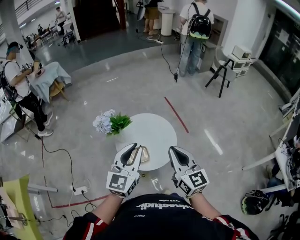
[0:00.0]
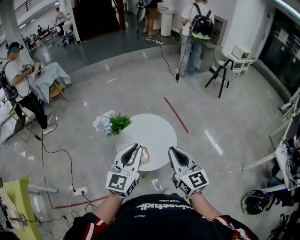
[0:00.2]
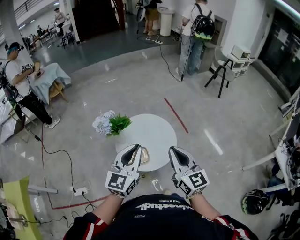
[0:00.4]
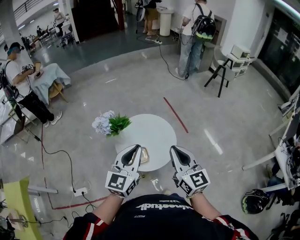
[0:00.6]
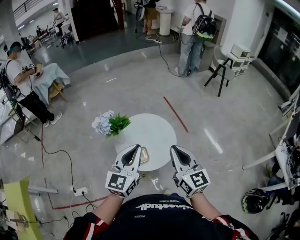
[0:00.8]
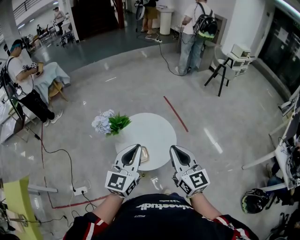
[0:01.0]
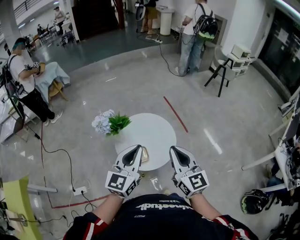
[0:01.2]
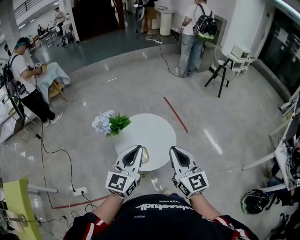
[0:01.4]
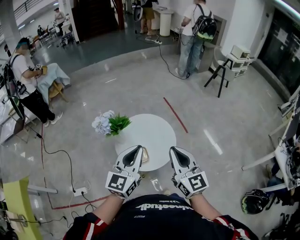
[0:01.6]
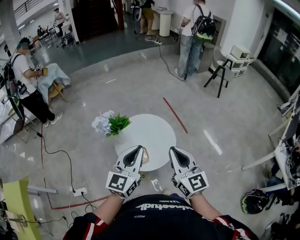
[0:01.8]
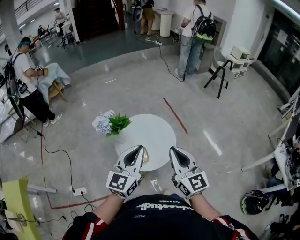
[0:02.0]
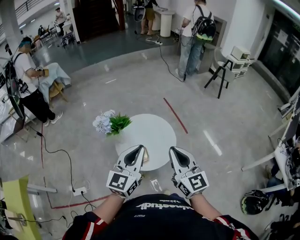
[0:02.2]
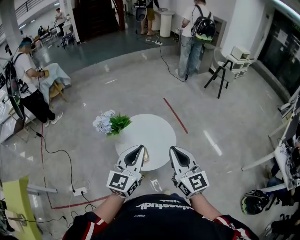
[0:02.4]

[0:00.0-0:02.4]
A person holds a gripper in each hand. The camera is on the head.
0:00.0 to 0:02.4: There are only small adjustments of the grippers.

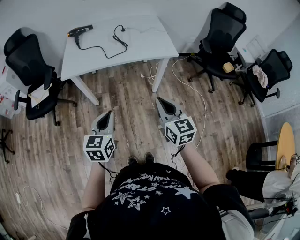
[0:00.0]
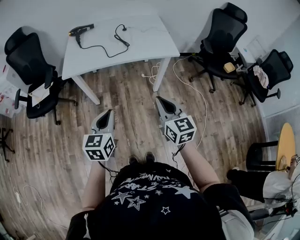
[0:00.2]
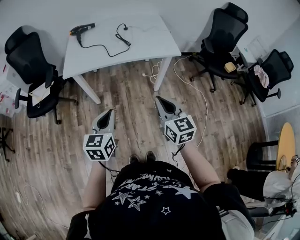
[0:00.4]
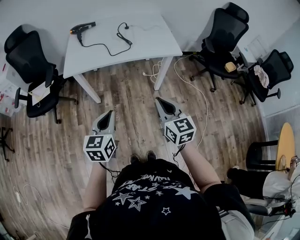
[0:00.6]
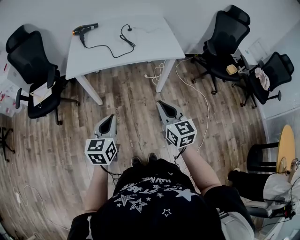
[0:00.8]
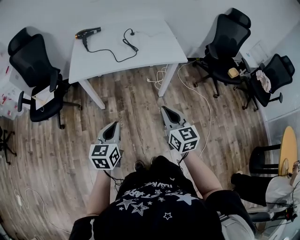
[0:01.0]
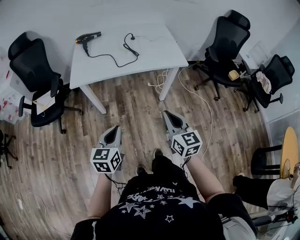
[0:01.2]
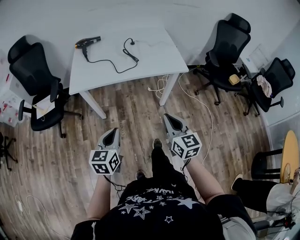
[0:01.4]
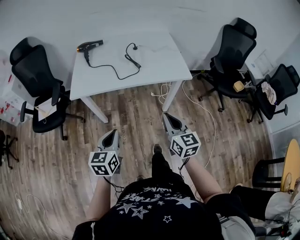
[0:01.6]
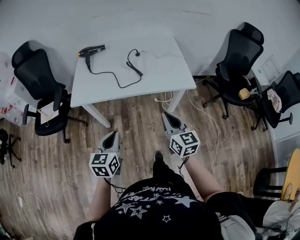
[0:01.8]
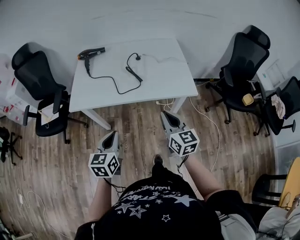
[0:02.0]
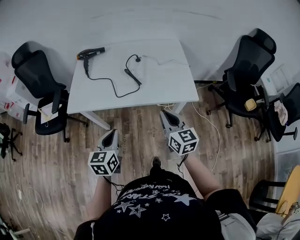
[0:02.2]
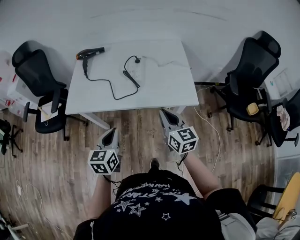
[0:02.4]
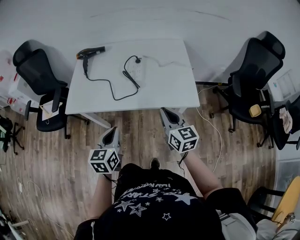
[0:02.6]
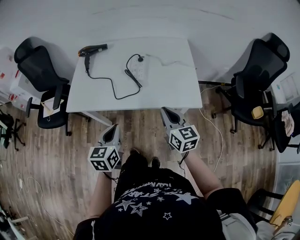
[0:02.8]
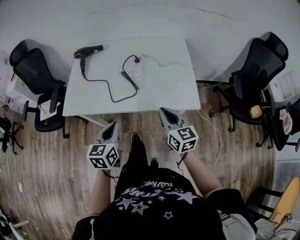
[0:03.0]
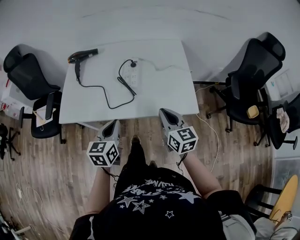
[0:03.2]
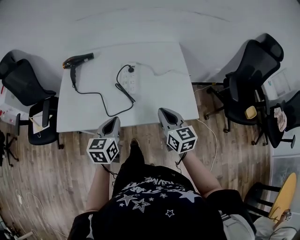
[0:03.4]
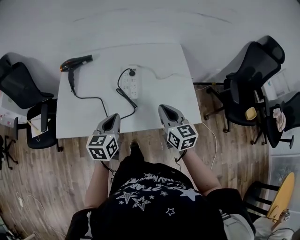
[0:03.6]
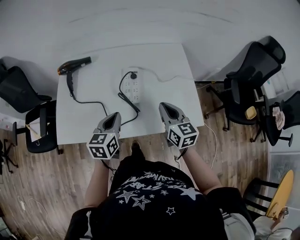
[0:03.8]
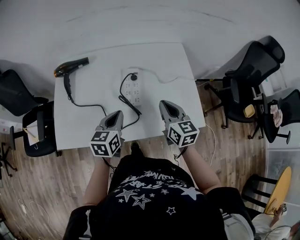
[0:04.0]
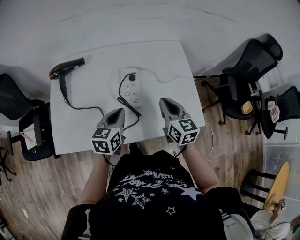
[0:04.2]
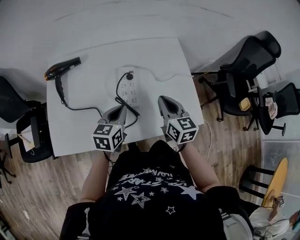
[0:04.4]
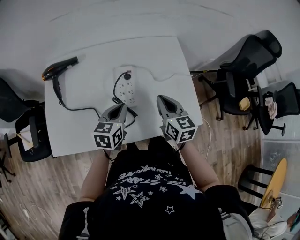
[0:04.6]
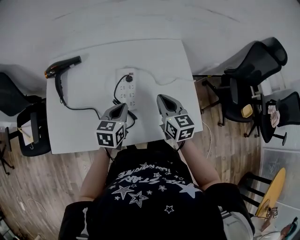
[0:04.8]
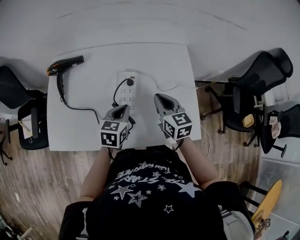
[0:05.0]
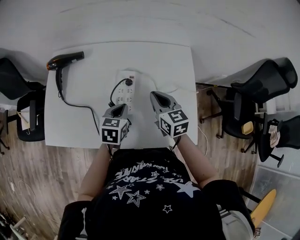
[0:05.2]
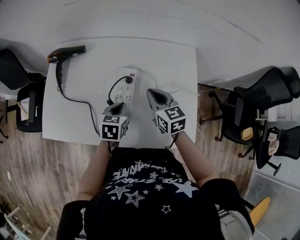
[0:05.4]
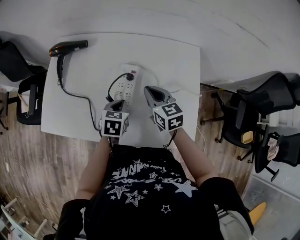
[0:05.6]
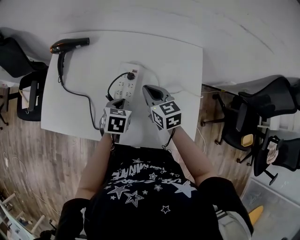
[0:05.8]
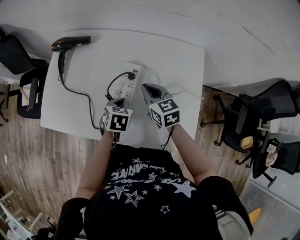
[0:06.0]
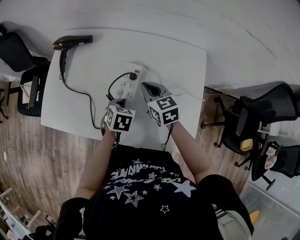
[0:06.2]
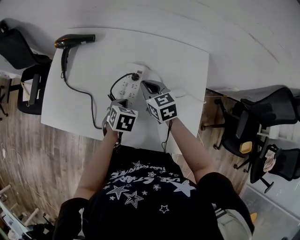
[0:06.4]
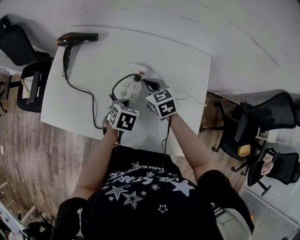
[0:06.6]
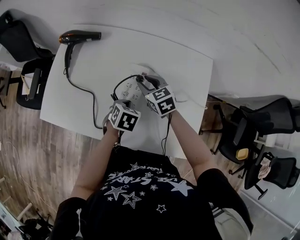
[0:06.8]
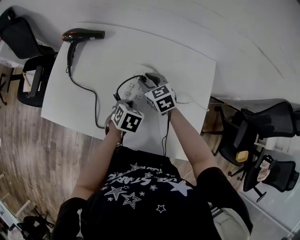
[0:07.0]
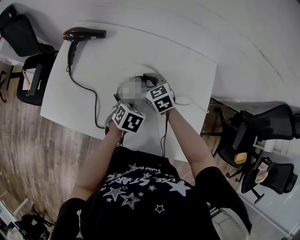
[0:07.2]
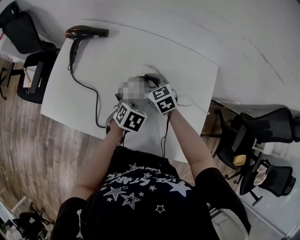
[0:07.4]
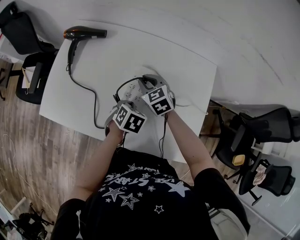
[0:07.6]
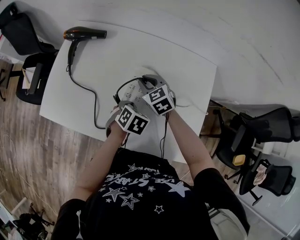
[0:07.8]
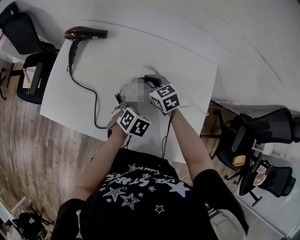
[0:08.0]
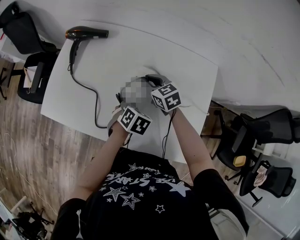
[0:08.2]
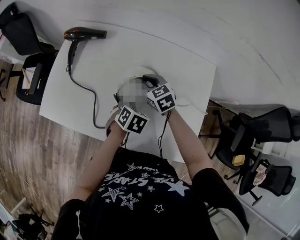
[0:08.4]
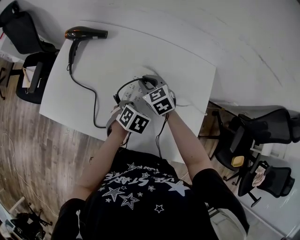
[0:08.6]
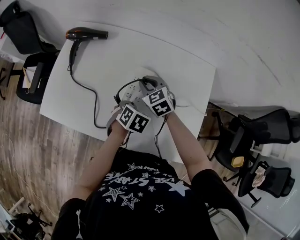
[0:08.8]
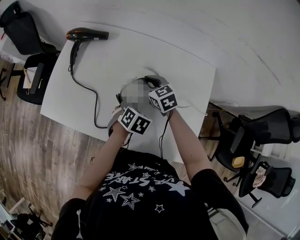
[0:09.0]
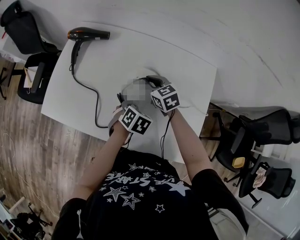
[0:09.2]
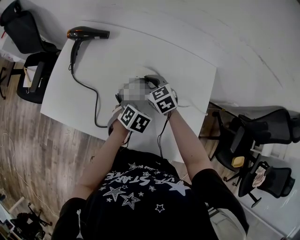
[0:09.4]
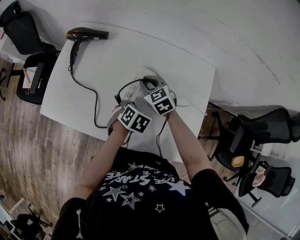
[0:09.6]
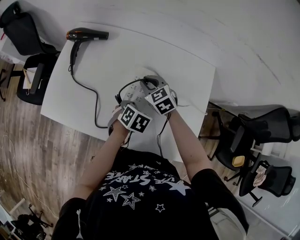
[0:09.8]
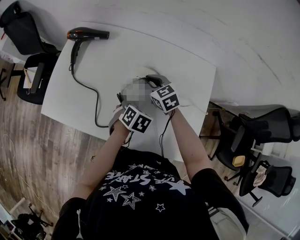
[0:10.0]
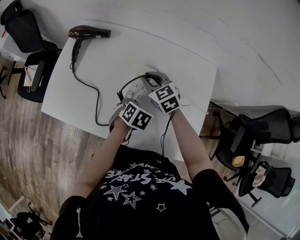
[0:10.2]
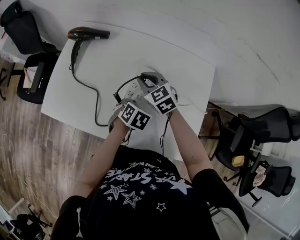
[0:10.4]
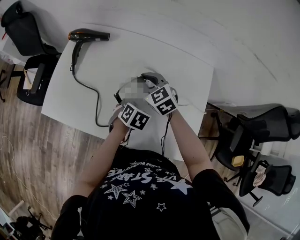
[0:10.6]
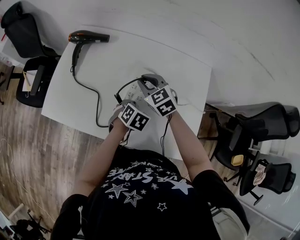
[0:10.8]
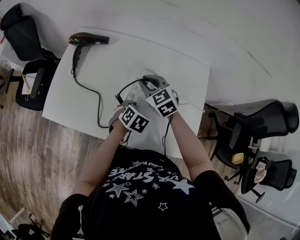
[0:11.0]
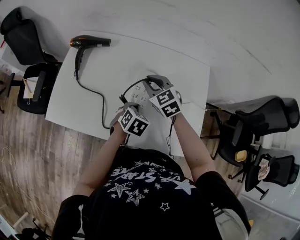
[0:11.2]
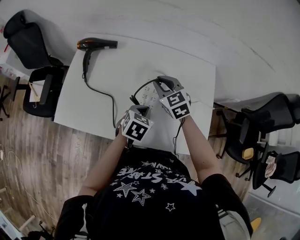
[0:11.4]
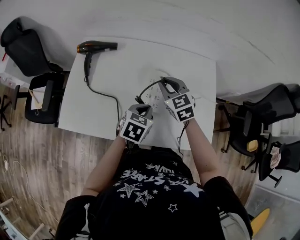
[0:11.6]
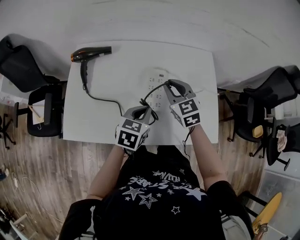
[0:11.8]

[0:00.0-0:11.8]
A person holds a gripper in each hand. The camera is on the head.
0:00.0 to 0:01.4: The right gripper ends up some 5 cm from where it was. Meanwhile the left gripper changes place by about 5 cm.
0:01.4 to 0:03.0: The left gripper heads forward and to the right, covering about 30 cm; the right gripper is displaced forward by about 30 cm.
0:03.0 to 0:04.4: The grippers both shift forward by approximately 25 cm. The left gripper turns by roughly 20 degrees.
0:04.4 to 0:06.0: The right gripper changes place by some 15 cm, and rotates roughly 30 degrees, while the left gripper moves downward, roughly 10 cm, and angles its fingers downward, by some 30 degrees.
0:06.0 to 0:07.4: The right gripper shifts some 10 cm forward and to the left, and swivels about 20 degrees.
0:07.4 to 0:10.4: There are only small adjustments of the grippers.
0:10.4 to 0:11.8: The left gripper heads upward, covering approximately 10 cm, and swivels approximately 40 degrees; the right gripper heads upward, covering about 5 cm, and rotates roughly 30 degrees.

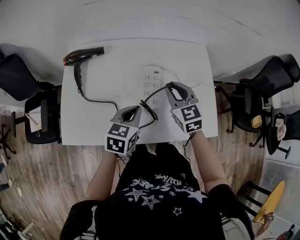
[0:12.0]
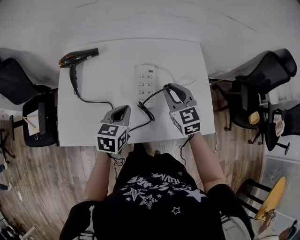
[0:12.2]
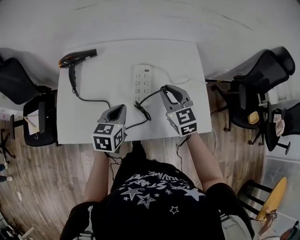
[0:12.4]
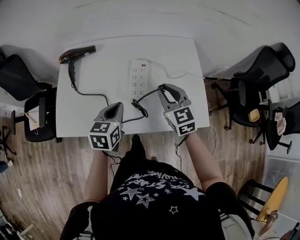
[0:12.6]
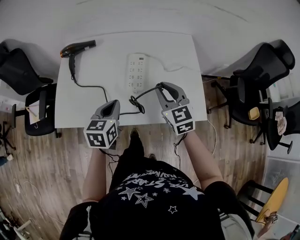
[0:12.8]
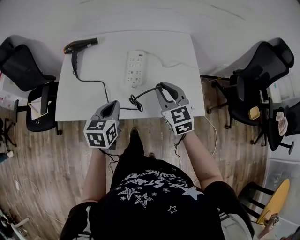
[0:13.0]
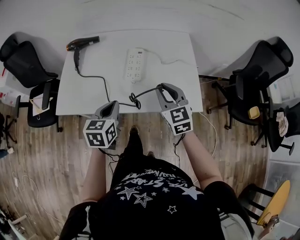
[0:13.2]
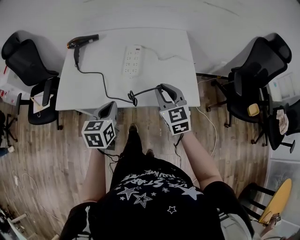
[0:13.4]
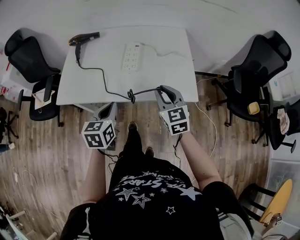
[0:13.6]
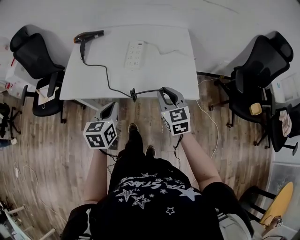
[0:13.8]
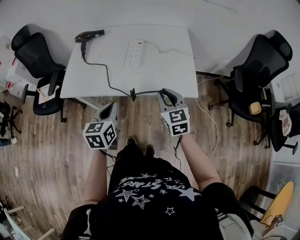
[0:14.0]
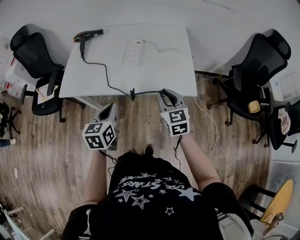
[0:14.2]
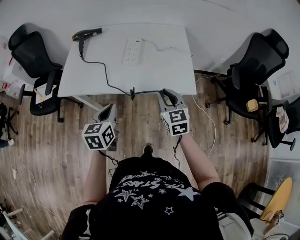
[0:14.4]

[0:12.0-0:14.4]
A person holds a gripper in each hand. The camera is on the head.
0:12.0 to 0:13.2: The grippers both shift backward by roughly 15 cm.
0:13.2 to 0:14.4: The two grippers go approximately 15 cm backward.

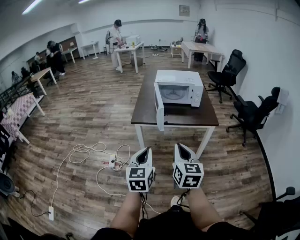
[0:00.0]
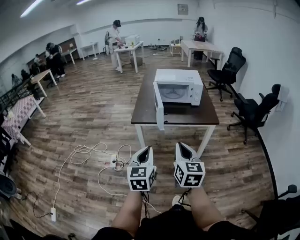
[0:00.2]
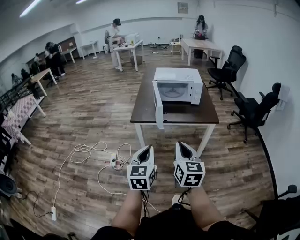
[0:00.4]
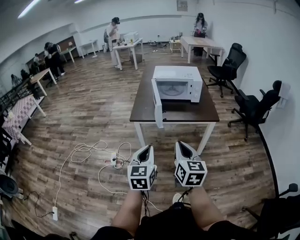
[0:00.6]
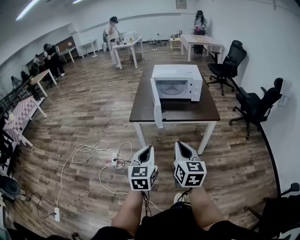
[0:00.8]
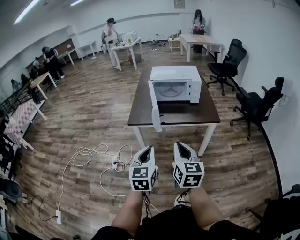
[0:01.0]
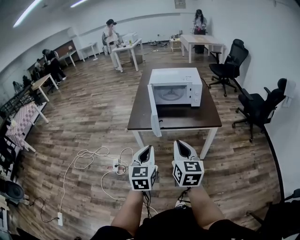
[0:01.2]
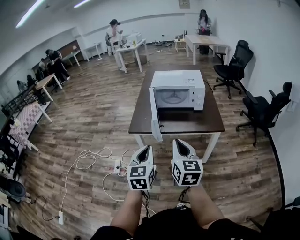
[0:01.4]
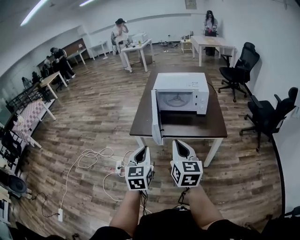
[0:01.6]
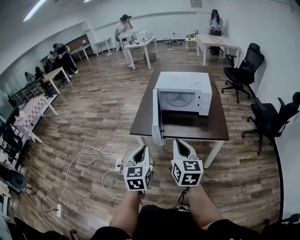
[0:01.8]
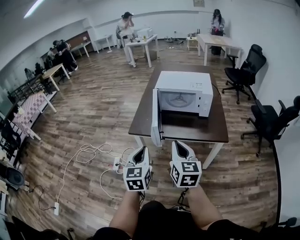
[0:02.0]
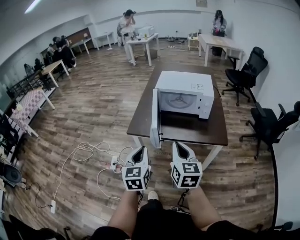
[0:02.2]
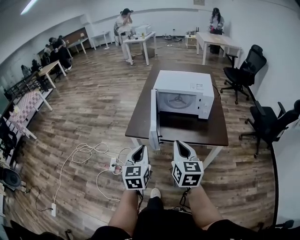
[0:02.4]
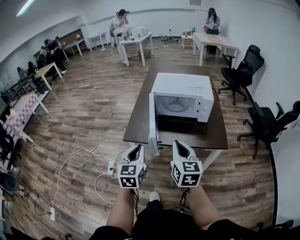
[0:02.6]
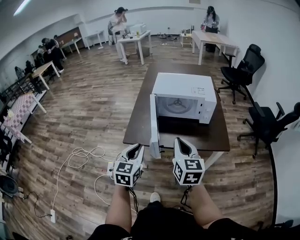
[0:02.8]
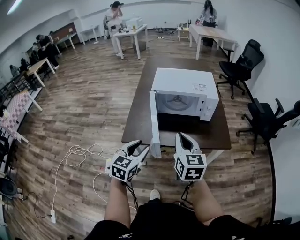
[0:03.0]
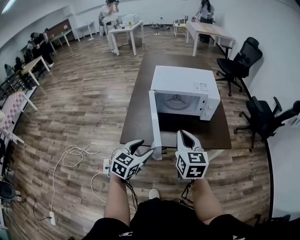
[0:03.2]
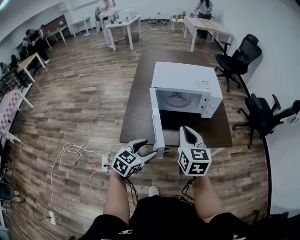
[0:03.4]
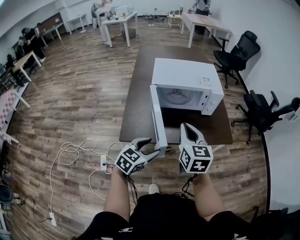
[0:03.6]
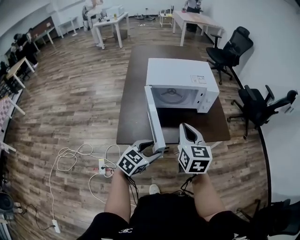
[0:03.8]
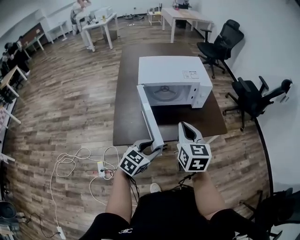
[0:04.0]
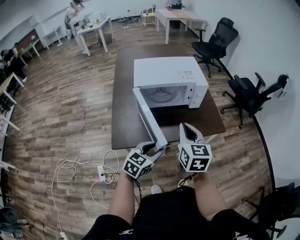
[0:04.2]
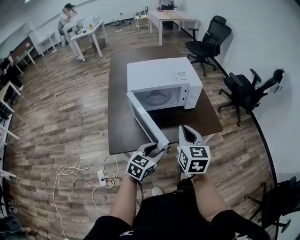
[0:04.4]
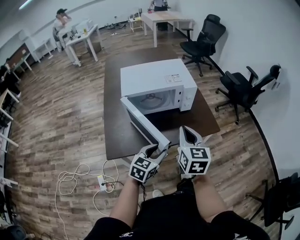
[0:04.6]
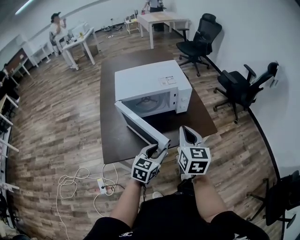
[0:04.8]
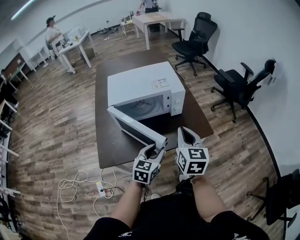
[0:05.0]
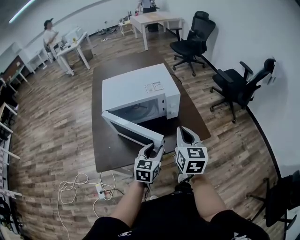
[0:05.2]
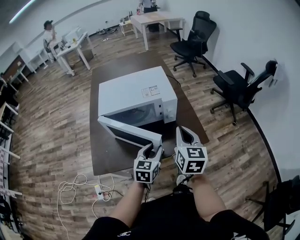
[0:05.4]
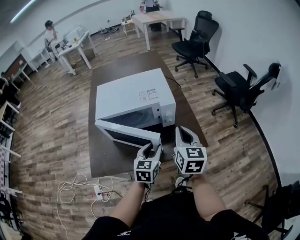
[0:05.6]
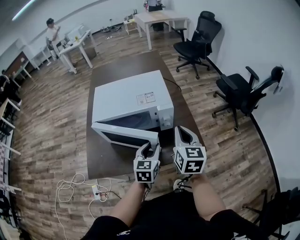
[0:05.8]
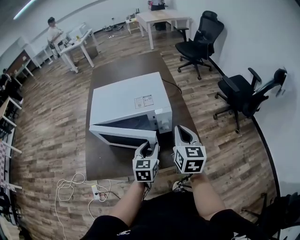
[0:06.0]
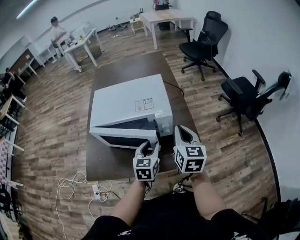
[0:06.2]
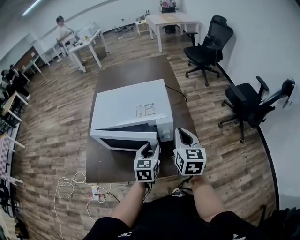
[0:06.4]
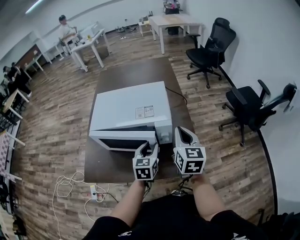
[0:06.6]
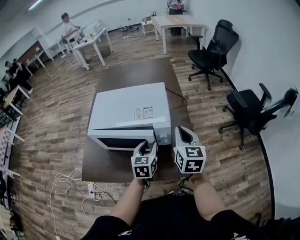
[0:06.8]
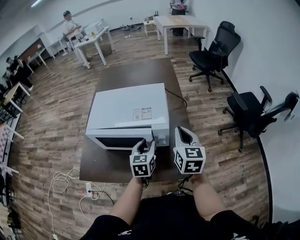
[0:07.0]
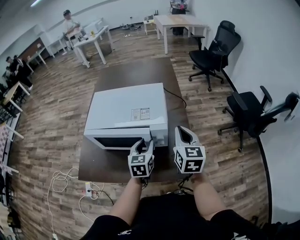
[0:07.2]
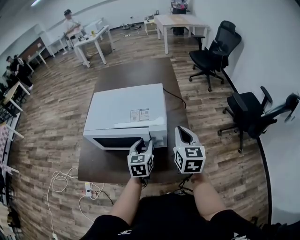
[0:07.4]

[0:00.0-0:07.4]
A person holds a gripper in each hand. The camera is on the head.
0:00.0 to 0:01.4: Both grippers move forward and to the right, about 15 cm.
0:01.4 to 0:03.0: The two grippers go some 20 cm forward. The left gripper changes its angle by roughly 20 degrees, and opens up.
0:03.0 to 0:04.4: The left gripper goes approximately 15 cm downward, forward and to the right, rotates roughly 30 degrees, and opens and closes again. Meanwhile the right gripper shifts about 5 cm forward.
0:04.4 to 0:06.0: Both grippers travel together forward and to the right, roughly 25 cm. The left gripper turns by roughly 30 degrees.
0:06.0 to 0:07.4: Both grippers move forward, some 10 cm.
